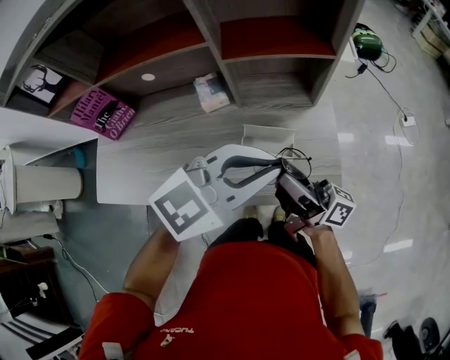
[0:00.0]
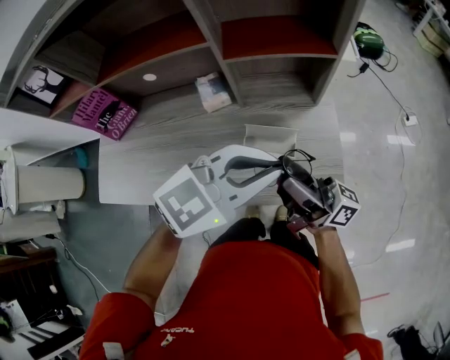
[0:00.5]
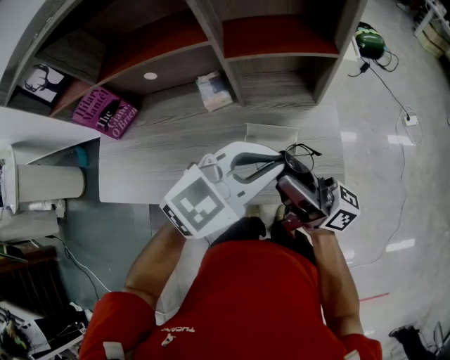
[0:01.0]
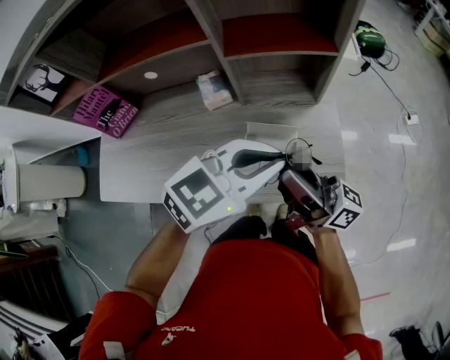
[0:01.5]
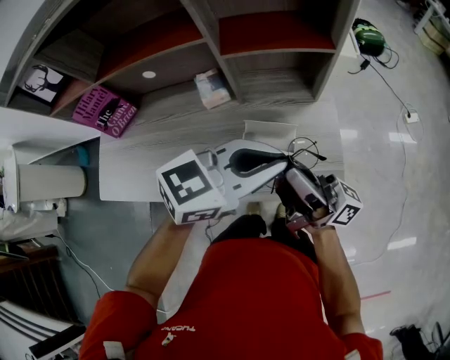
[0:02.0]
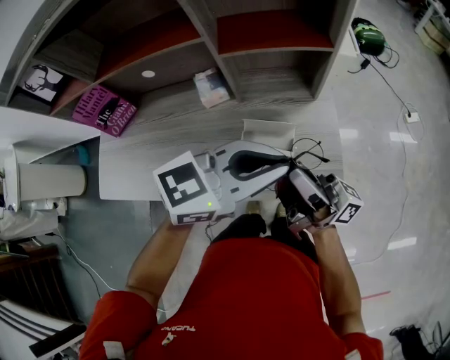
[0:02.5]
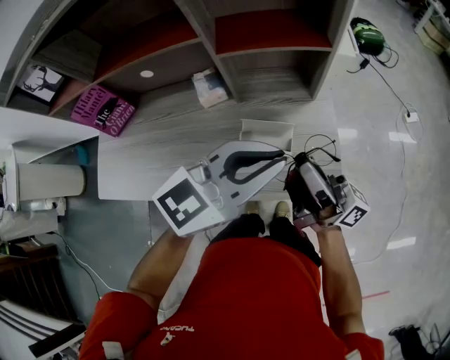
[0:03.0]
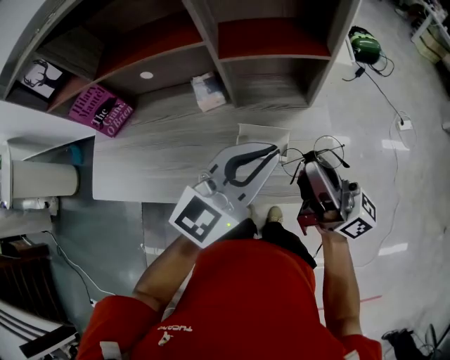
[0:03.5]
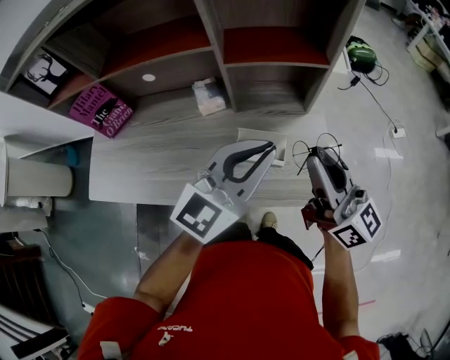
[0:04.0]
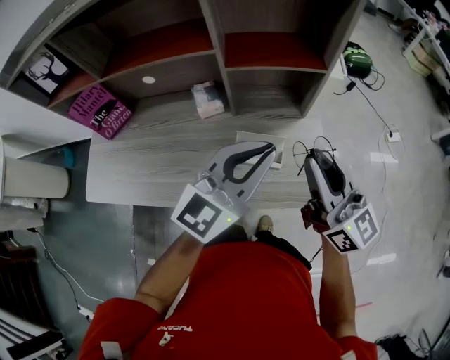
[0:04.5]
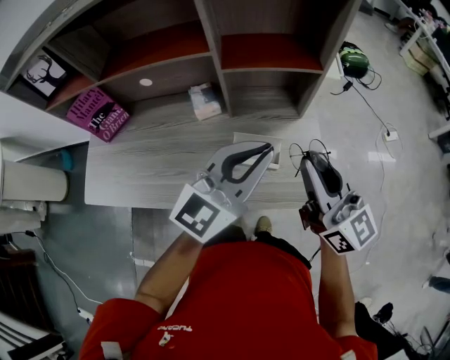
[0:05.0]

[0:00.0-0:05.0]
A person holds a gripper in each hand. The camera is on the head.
0:00.0 to 0:02.5: The right gripper is displaced upward by roughly 5 cm, and closes its fingers. Meanwhile the left gripper turns by about 20 degrees.
0:02.5 to 0:05.0: The right gripper travels upward by roughly 5 cm, and rotates around the line of its fingers by some 60 degrees, counterclockwise from behind; the left gripper rotates approximately 30 degrees.

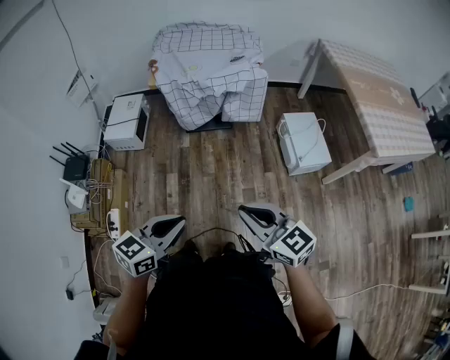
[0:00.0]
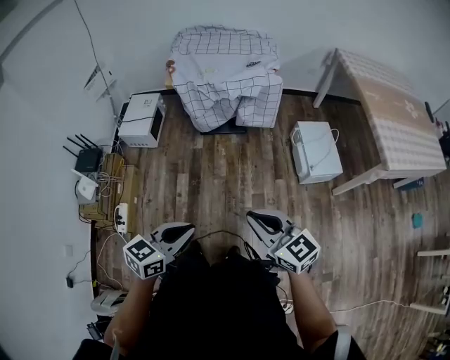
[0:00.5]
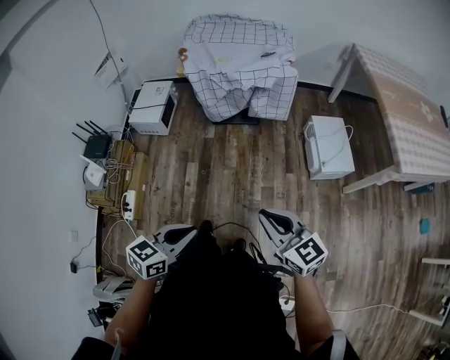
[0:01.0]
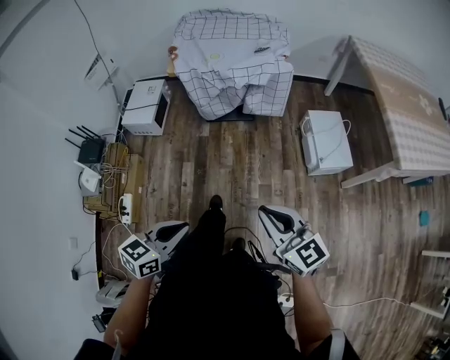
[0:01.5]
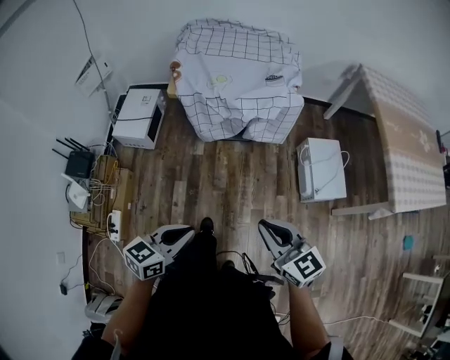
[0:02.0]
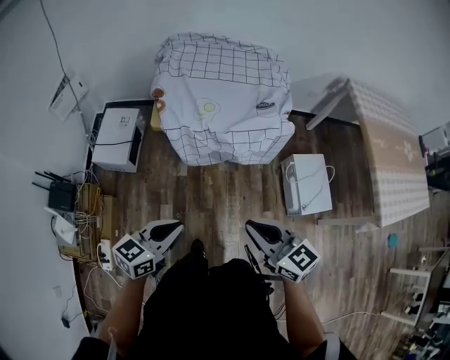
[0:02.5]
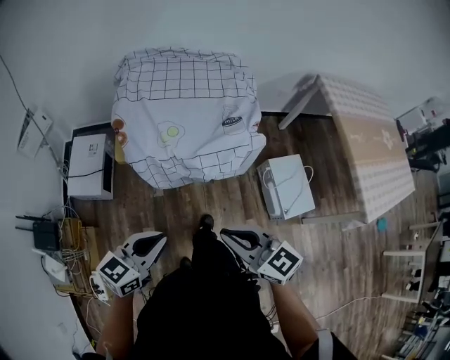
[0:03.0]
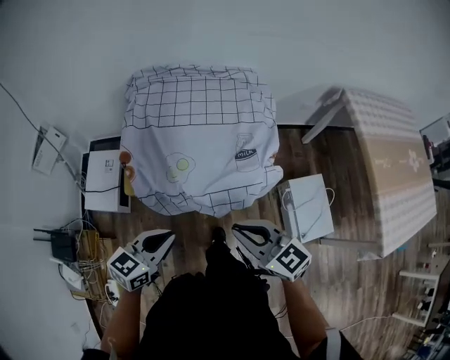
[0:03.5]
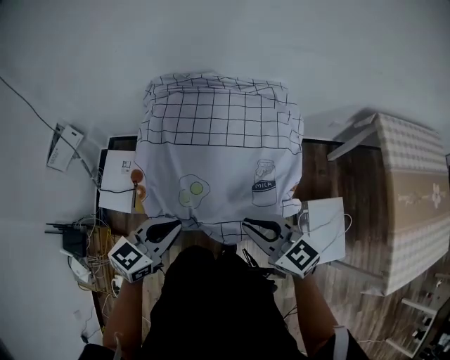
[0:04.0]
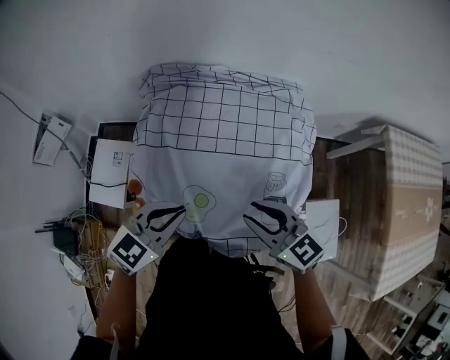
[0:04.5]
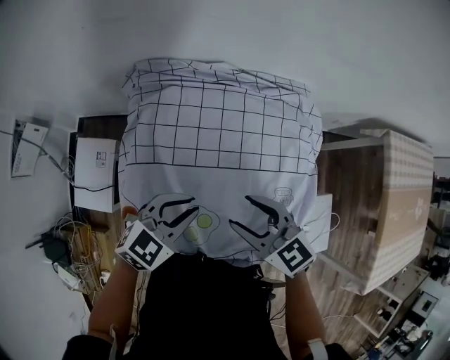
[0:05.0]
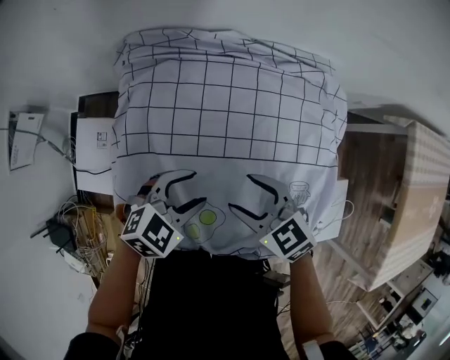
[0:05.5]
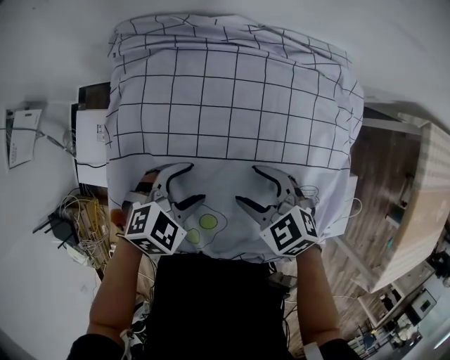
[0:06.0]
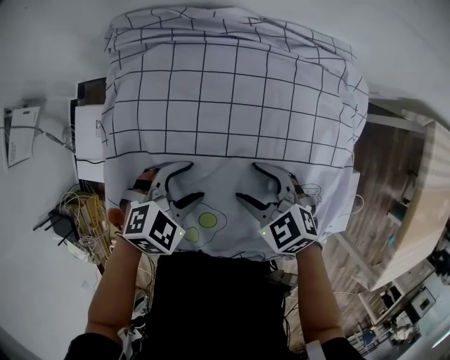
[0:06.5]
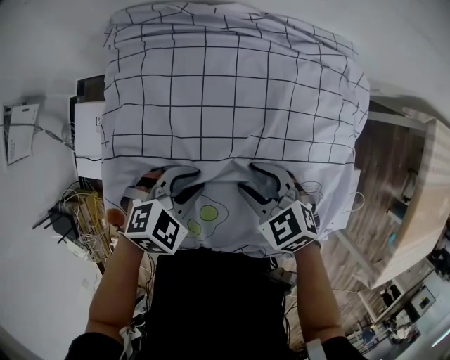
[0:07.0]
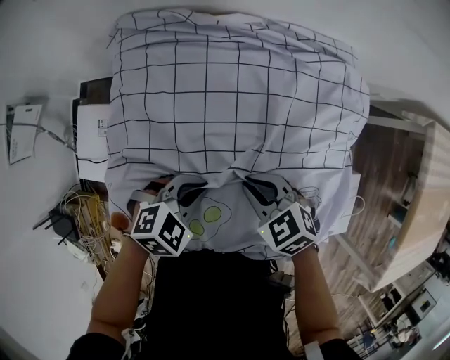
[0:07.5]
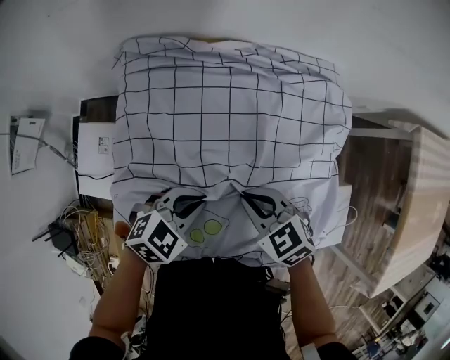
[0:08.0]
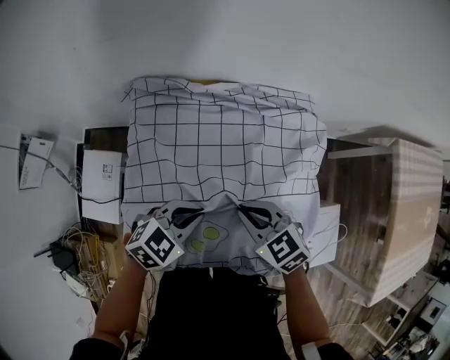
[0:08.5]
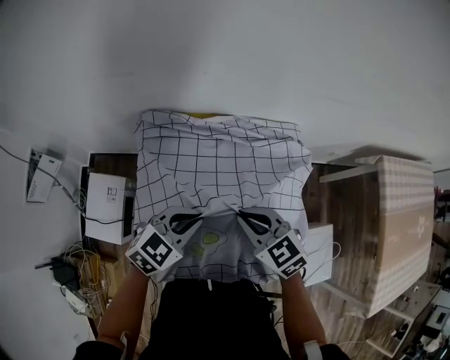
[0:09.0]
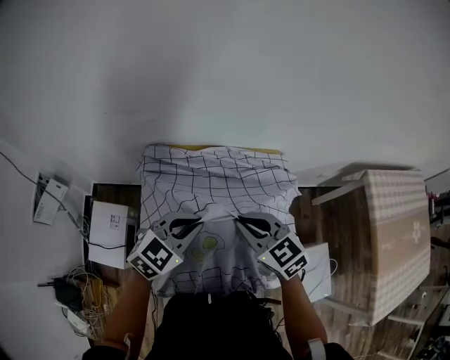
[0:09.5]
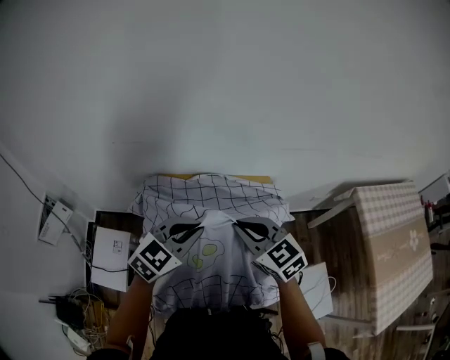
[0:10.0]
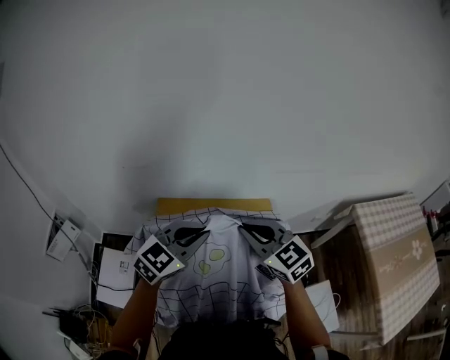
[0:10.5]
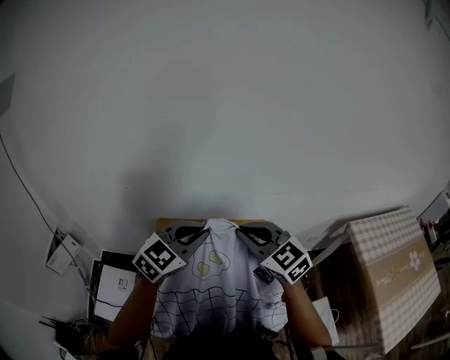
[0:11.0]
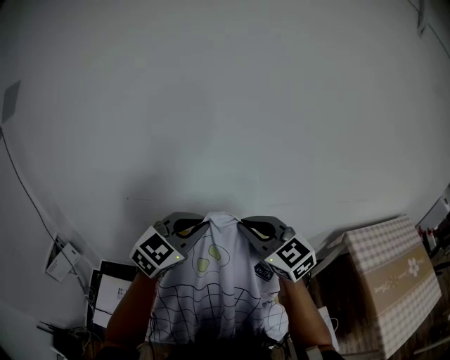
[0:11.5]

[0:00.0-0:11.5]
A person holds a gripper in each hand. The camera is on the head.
0:00.0 to 0:02.0: The right gripper goes about 15 cm forward; the left gripper goes some 15 cm forward and downward.
0:02.0 to 0:04.0: Both grippers are carried forward, some 50 cm.
0:04.0 to 0:06.0: The left gripper changes place by about 30 cm, changes its angle by about 40 degrees, and opens its fingers, while the right gripper shifts by some 30 cm, angles its fingers downward, by approximately 30 degrees, and opens its fingers.
0:06.0 to 0:07.5: The right gripper closes its fingers. Meanwhile the left gripper closes.
0:07.5 to 0:09.5: The grippers both shift upward by some 25 cm. The left gripper swivels roughly 30 degrees; the right gripper swivels about 20 degrees.
0:09.5 to 0:11.5: Both grippers move upward, some 25 cm. The right gripper swivels some 30 degrees, while the left gripper rotates roughly 20 degrees.

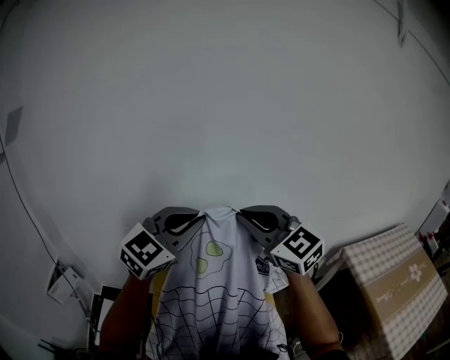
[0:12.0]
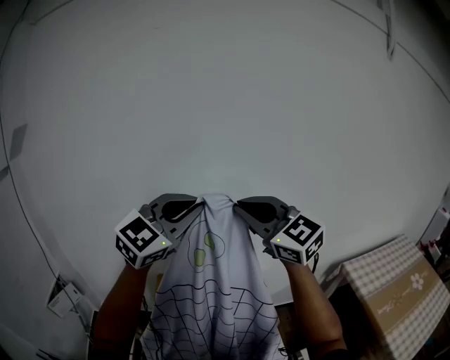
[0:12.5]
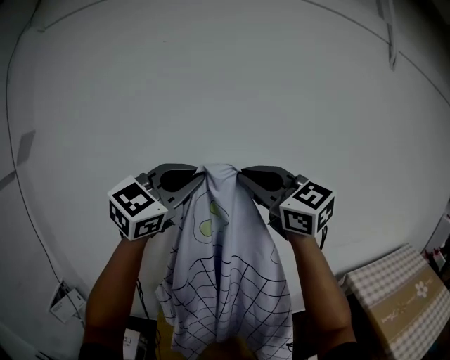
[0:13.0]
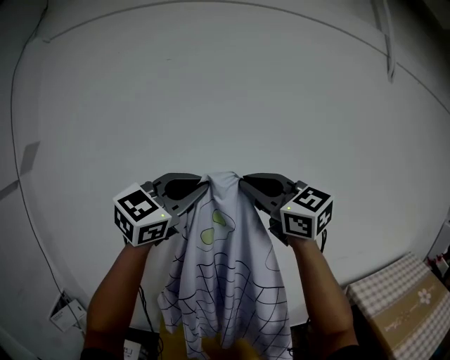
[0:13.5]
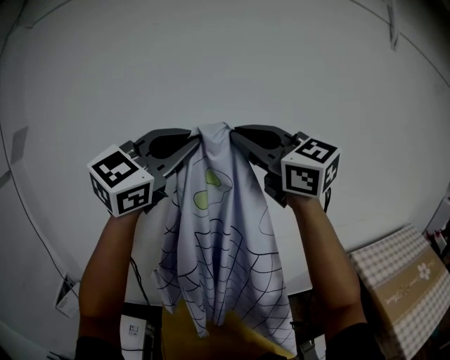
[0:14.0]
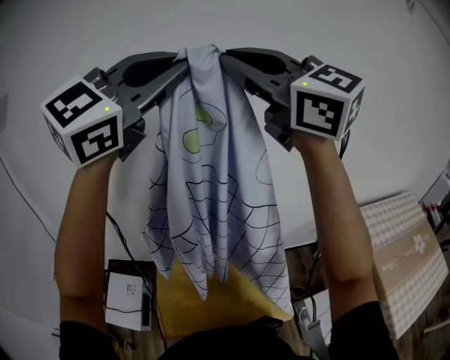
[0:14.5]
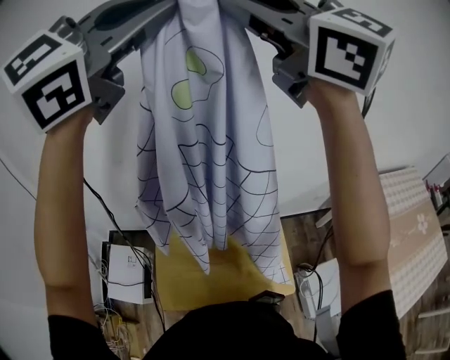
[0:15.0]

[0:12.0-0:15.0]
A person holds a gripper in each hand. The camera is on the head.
0:12.0 to 0:13.5: The grippers both shift upward by approximately 20 cm.
0:13.5 to 0:15.0: The grippers move only a little.

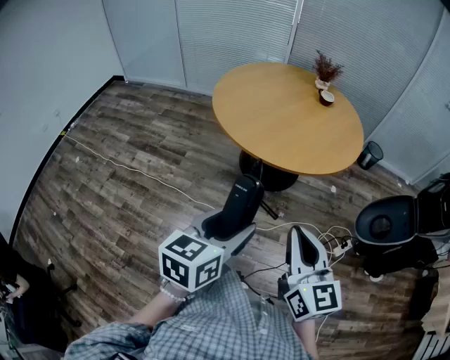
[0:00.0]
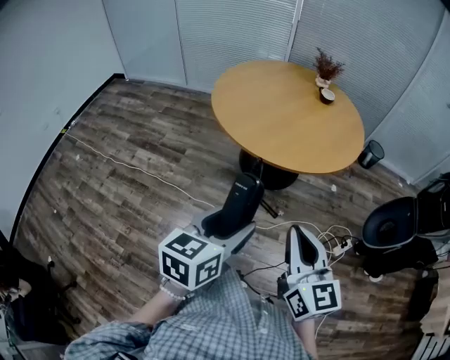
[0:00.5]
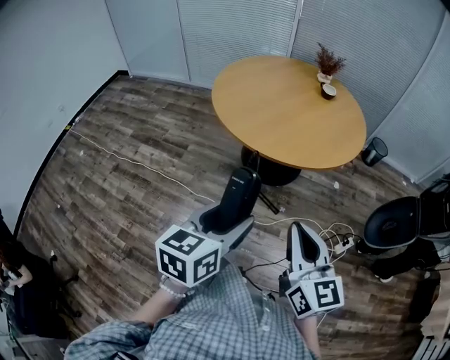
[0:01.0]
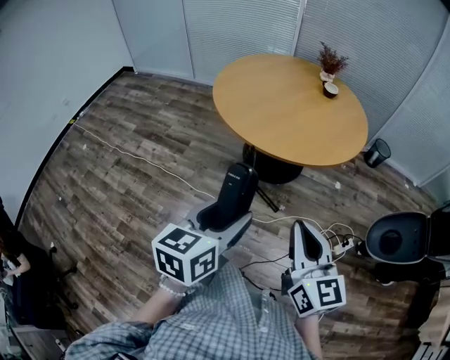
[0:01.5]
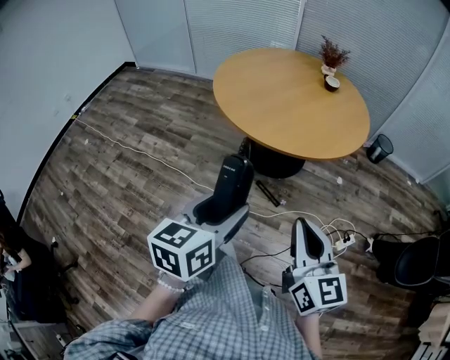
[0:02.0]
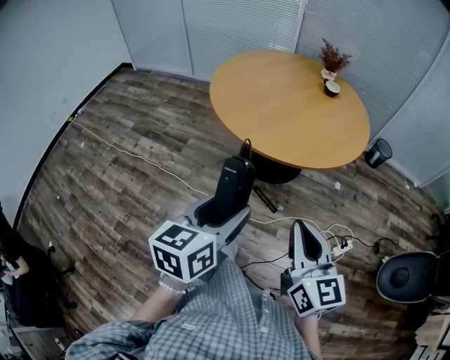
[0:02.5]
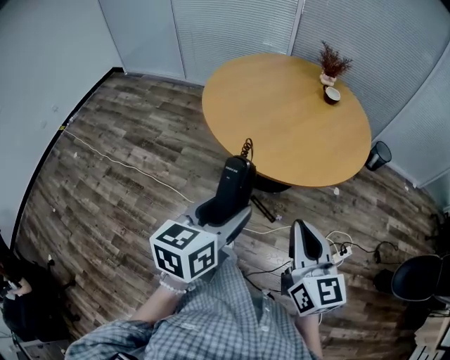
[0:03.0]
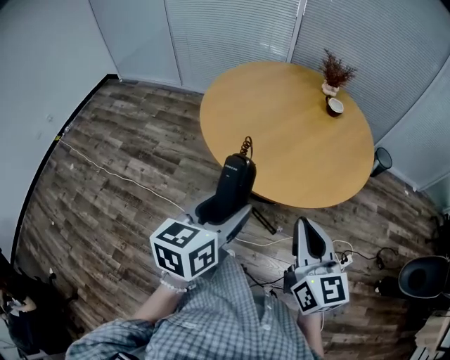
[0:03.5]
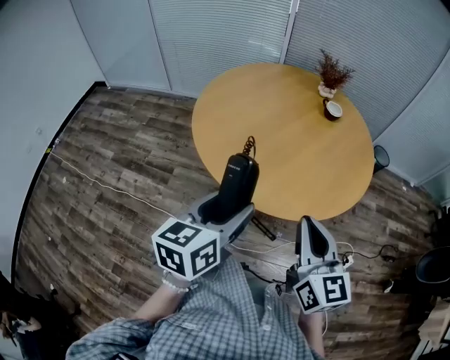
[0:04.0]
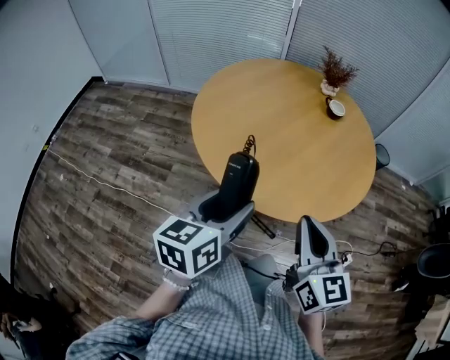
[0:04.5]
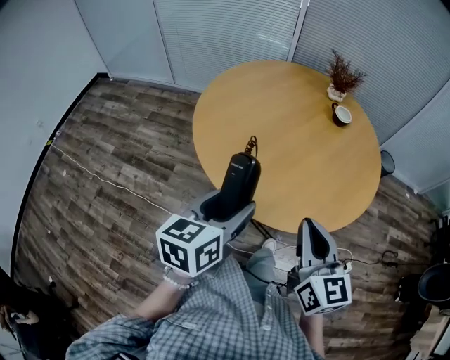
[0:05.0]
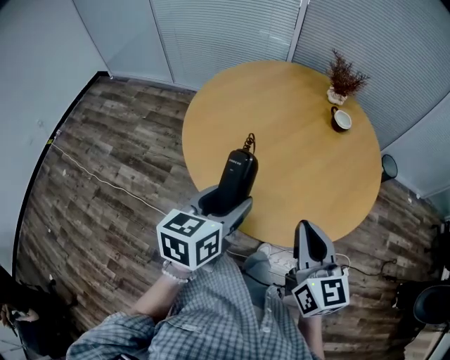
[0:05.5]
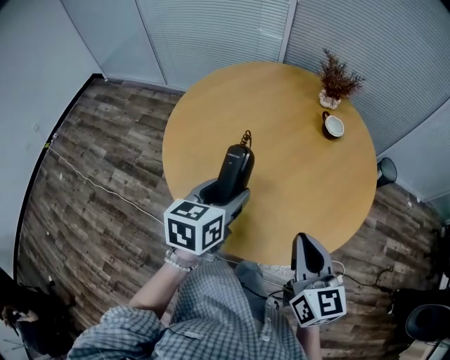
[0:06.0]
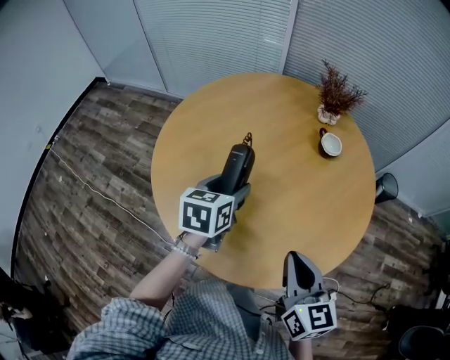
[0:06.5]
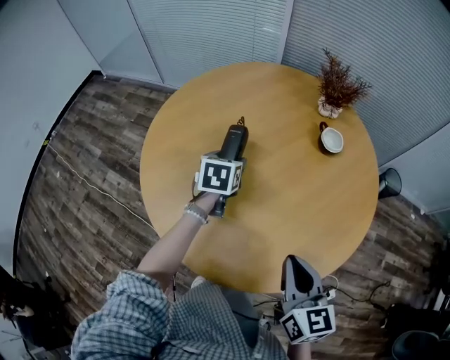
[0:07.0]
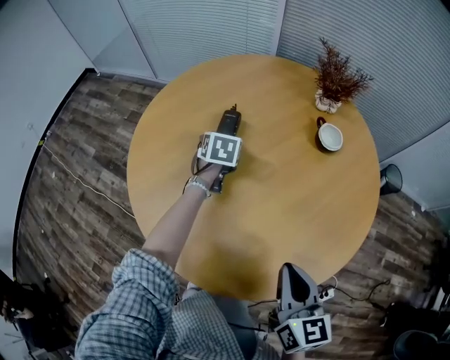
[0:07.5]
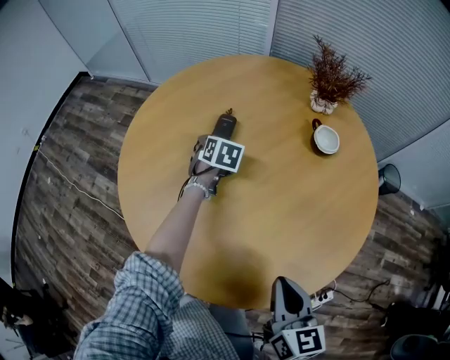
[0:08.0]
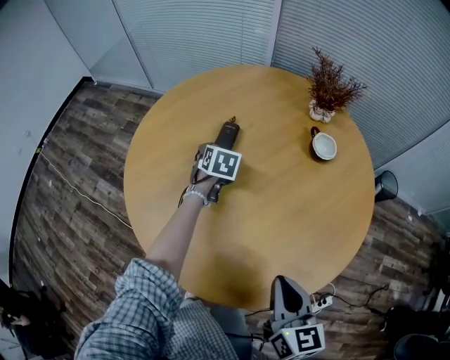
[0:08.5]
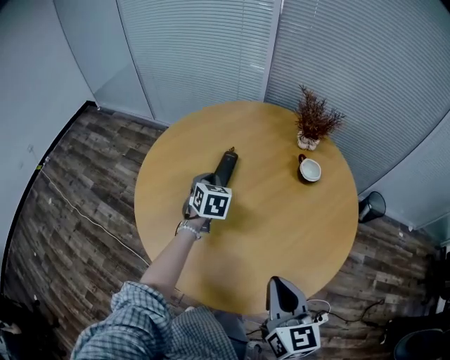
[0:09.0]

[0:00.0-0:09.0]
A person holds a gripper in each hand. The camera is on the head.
0:00.0 to 0:02.0: The left gripper moves to the right, about 5 cm, while the right gripper shifts roughly 10 cm to the right.
0:02.0 to 0:04.5: The two grippers go roughly 30 cm forward.
0:04.5 to 0:07.0: The left gripper travels forward and downward by approximately 40 cm, and rotates roughly 30 degrees. Meanwhile the right gripper heads forward, to the right and downward, covering about 30 cm.
0:07.0 to 0:09.0: The left gripper moves approximately 10 cm downward and comes back, changes its angle by approximately 20 degrees, and closes its fingers.
